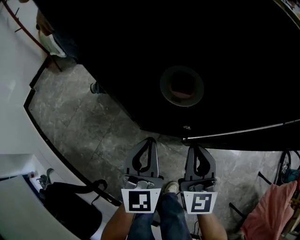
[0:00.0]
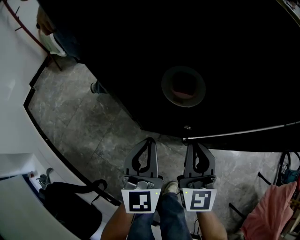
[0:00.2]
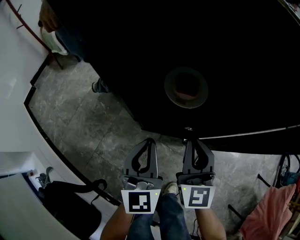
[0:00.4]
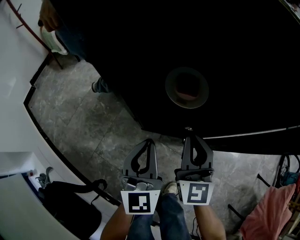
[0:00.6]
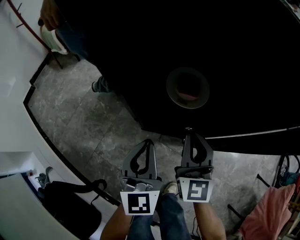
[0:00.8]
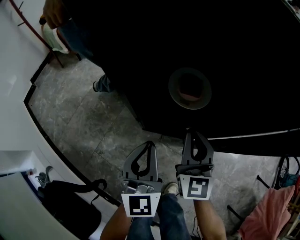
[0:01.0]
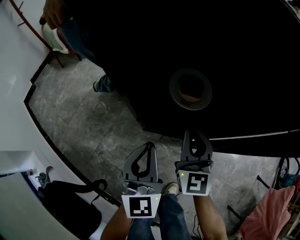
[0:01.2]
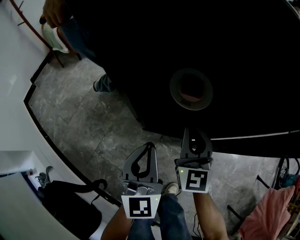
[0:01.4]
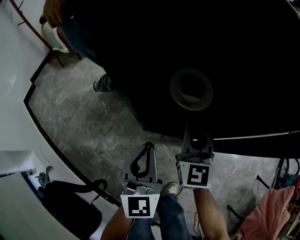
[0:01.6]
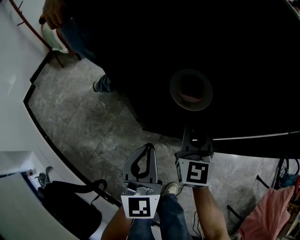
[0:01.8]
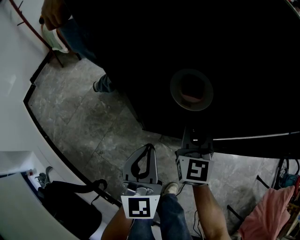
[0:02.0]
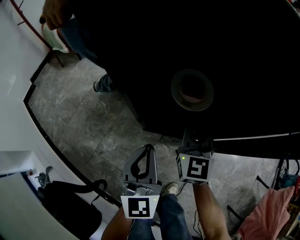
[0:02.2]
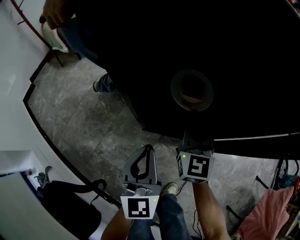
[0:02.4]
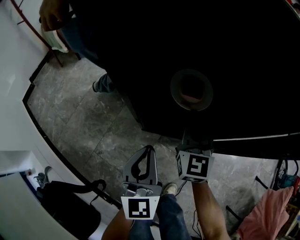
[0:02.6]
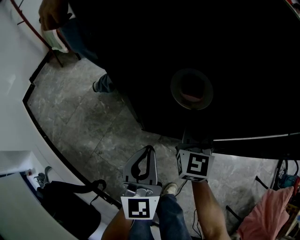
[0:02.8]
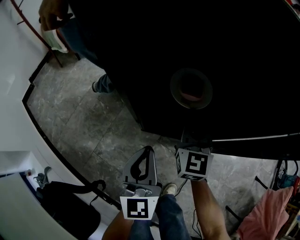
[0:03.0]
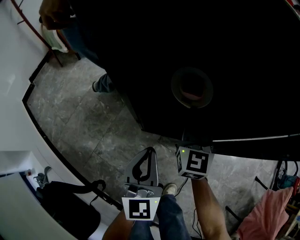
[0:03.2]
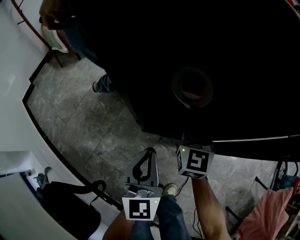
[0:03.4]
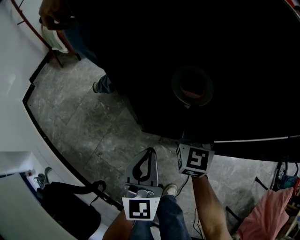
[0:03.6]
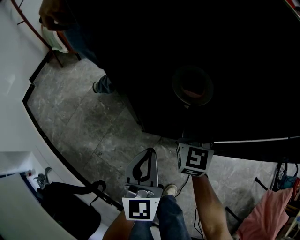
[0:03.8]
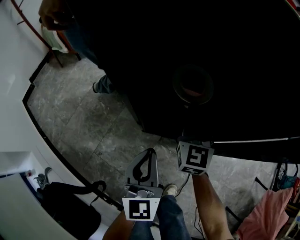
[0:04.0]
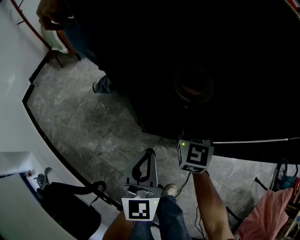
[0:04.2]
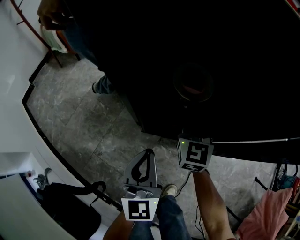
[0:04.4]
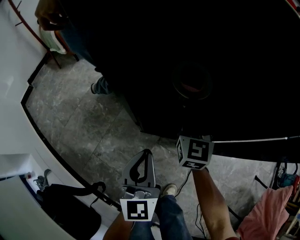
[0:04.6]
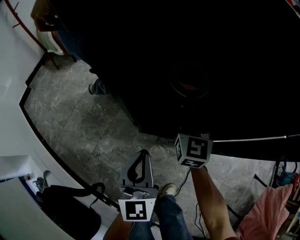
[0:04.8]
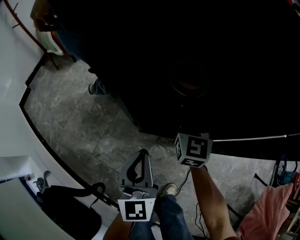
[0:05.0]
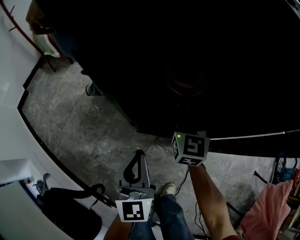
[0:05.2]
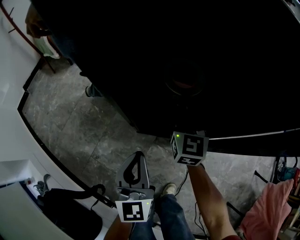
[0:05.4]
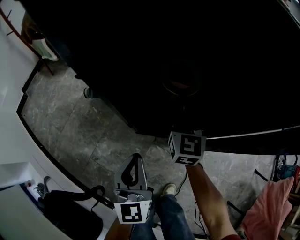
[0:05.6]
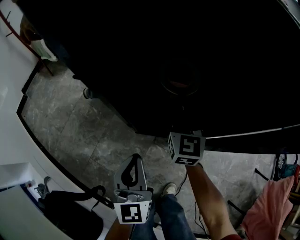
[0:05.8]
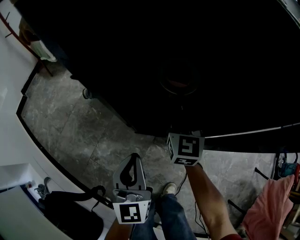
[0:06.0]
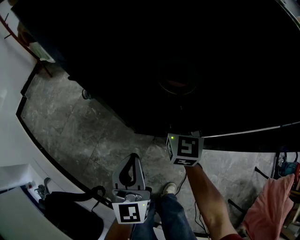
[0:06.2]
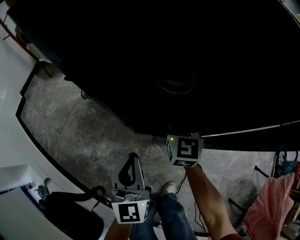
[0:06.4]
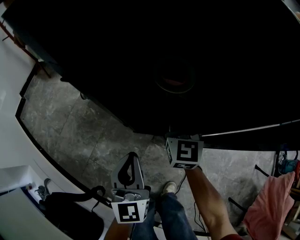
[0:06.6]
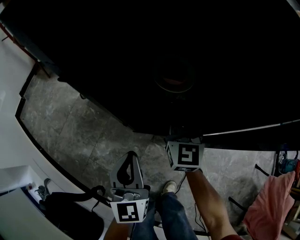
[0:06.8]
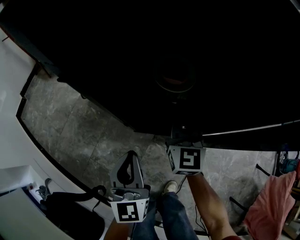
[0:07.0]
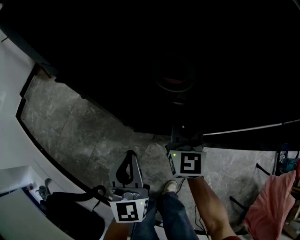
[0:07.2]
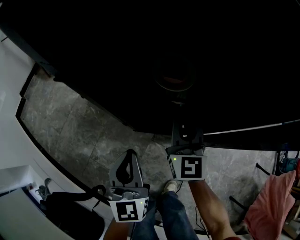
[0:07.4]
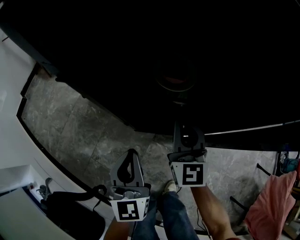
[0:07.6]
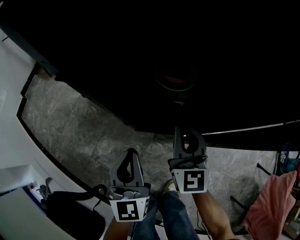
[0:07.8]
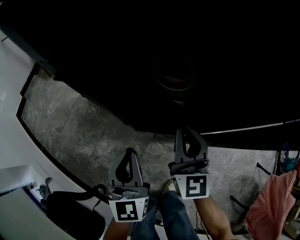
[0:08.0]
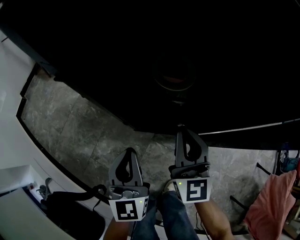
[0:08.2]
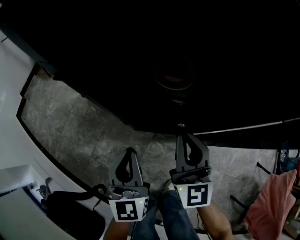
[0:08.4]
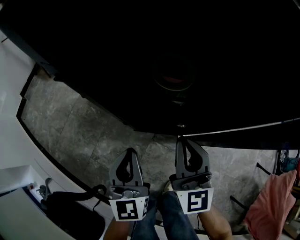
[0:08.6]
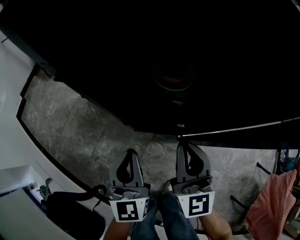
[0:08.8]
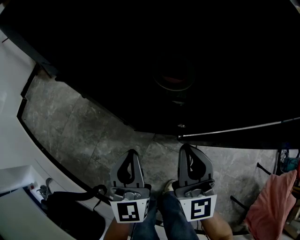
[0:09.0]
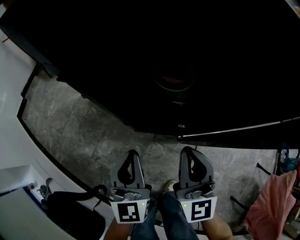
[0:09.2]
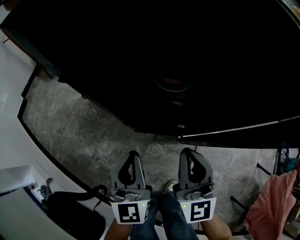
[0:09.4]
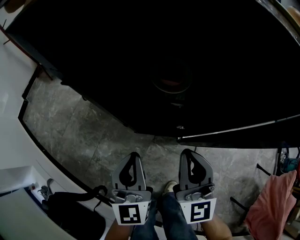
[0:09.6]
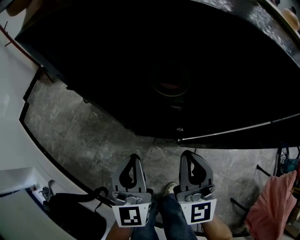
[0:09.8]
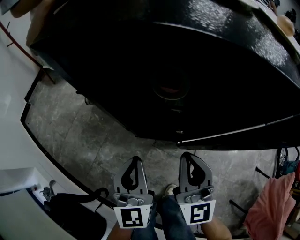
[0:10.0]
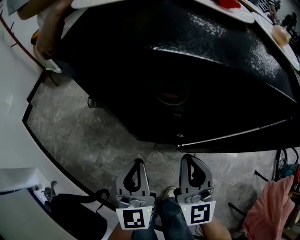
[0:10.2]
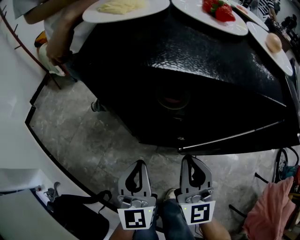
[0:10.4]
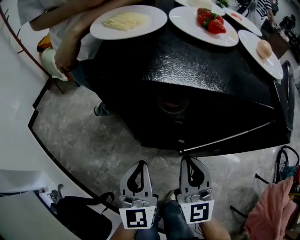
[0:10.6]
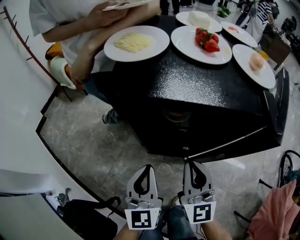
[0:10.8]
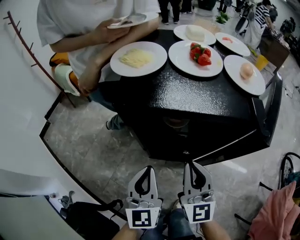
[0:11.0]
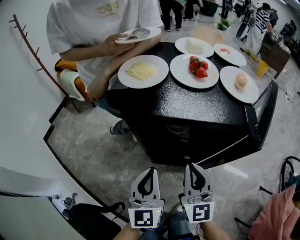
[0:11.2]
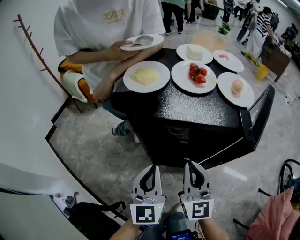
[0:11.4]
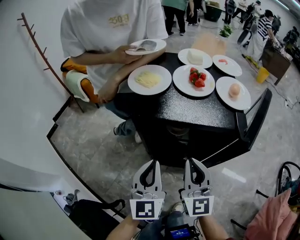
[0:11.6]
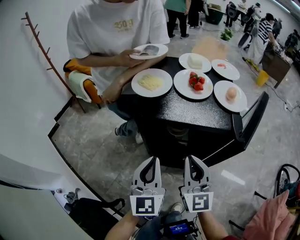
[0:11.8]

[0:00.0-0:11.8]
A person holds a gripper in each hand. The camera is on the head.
0:00.0 to 0:01.4: The right gripper goes approximately 5 cm forward.
0:01.4 to 0:03.0: The grippers move only a little.
0:03.0 to 0:06.0: The grippers make only small movements.
0:06.0 to 0:07.4: The right gripper is displaced backward by about 5 cm.
0:07.4 to 0:08.8: The right gripper shifts about 10 cm backward and upward.
0:08.8 to 0:10.4: Both grippers move upward, roughly 5 cm.
0:10.4 to 0:11.8: The two grippers go about 15 cm upward.

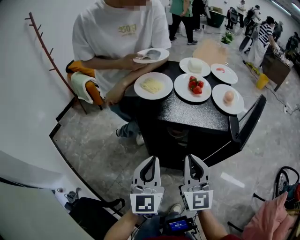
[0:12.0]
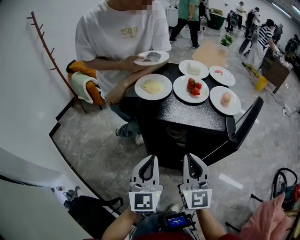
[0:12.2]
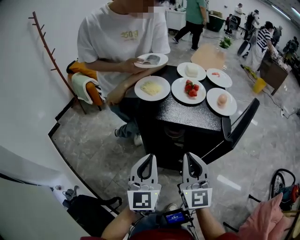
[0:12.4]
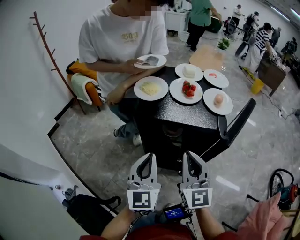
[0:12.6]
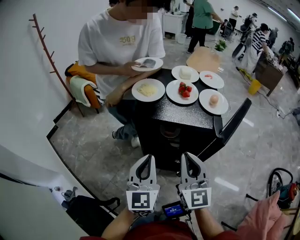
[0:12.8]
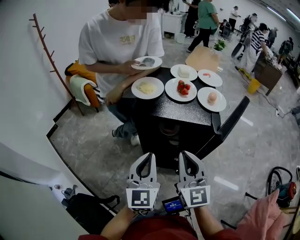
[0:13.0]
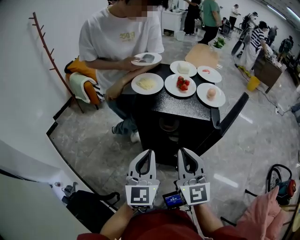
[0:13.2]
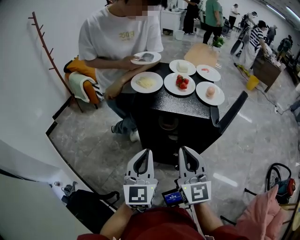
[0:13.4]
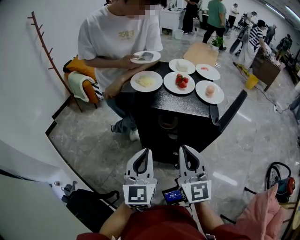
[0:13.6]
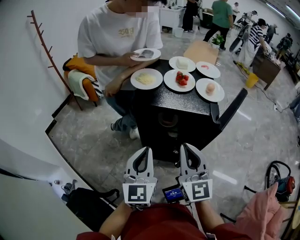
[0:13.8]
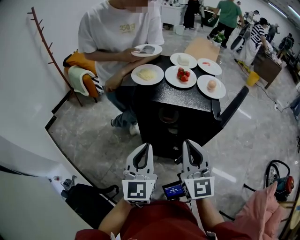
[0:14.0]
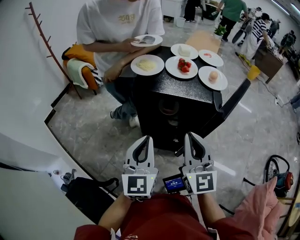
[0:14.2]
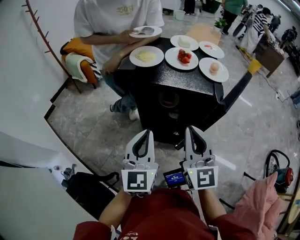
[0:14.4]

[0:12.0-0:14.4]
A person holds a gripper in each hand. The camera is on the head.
0:12.0 to 0:13.2: The two grippers go some 10 cm upward and backward.
0:13.2 to 0:14.4: The grippers stay close to where they were, moving slightly.

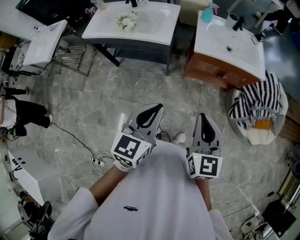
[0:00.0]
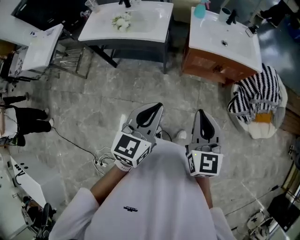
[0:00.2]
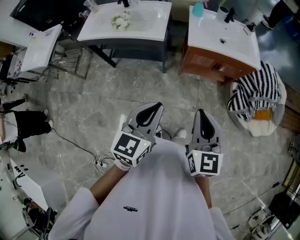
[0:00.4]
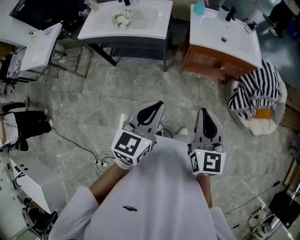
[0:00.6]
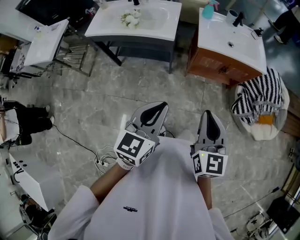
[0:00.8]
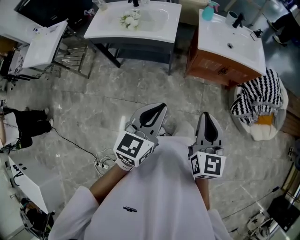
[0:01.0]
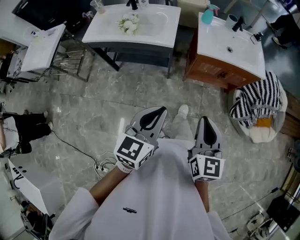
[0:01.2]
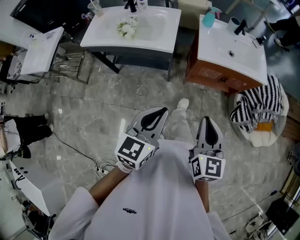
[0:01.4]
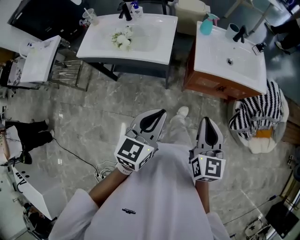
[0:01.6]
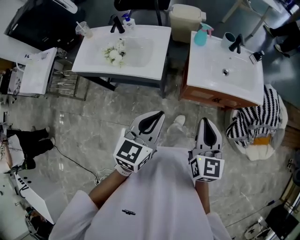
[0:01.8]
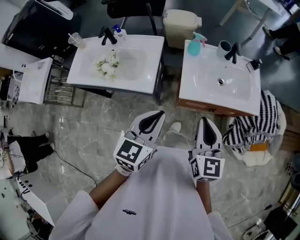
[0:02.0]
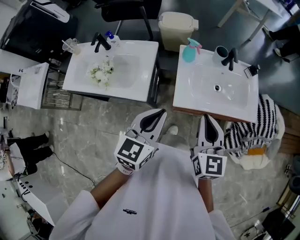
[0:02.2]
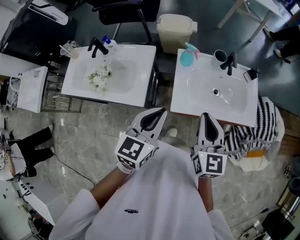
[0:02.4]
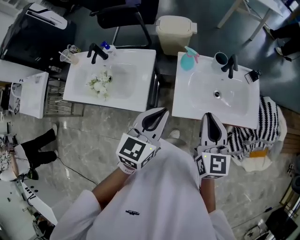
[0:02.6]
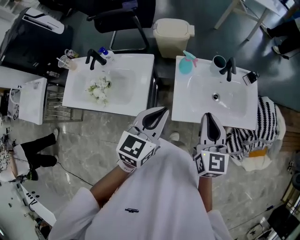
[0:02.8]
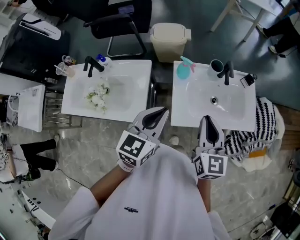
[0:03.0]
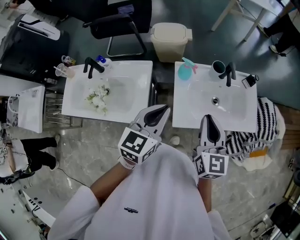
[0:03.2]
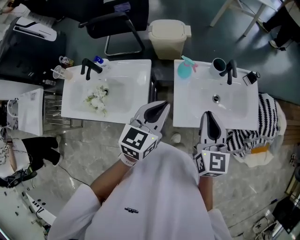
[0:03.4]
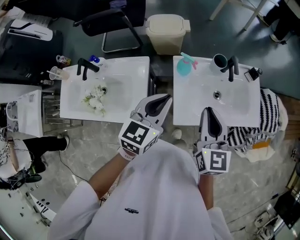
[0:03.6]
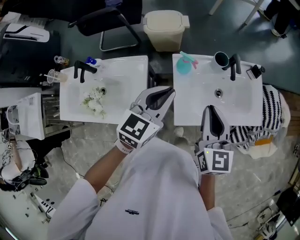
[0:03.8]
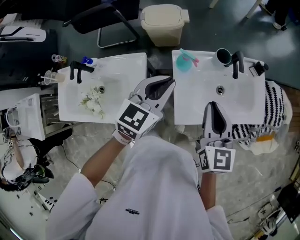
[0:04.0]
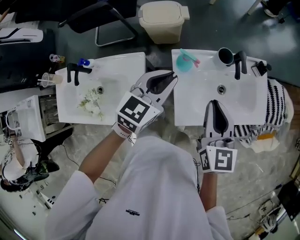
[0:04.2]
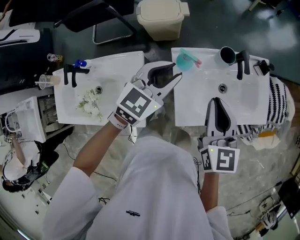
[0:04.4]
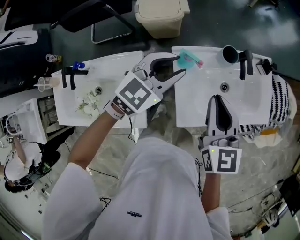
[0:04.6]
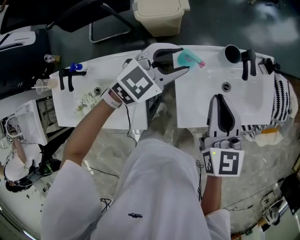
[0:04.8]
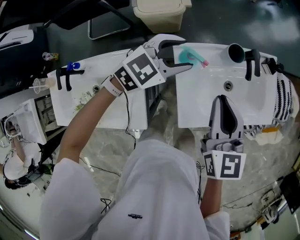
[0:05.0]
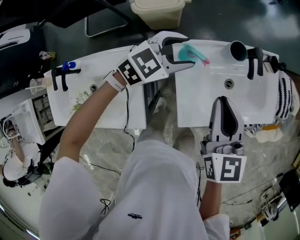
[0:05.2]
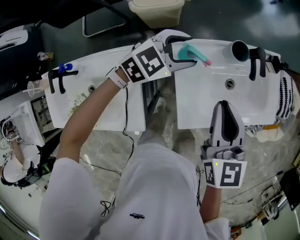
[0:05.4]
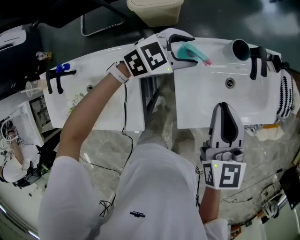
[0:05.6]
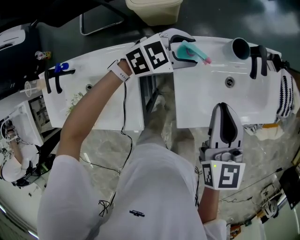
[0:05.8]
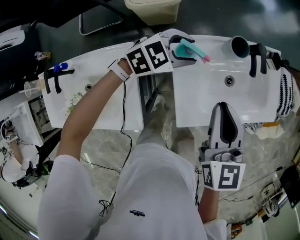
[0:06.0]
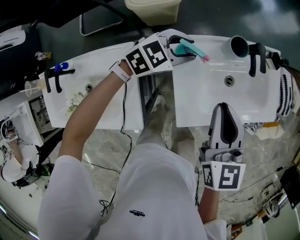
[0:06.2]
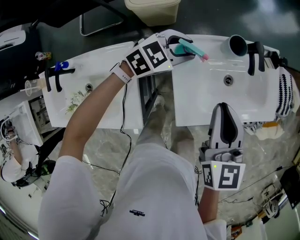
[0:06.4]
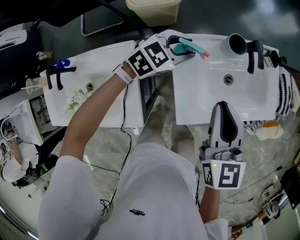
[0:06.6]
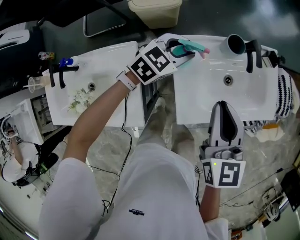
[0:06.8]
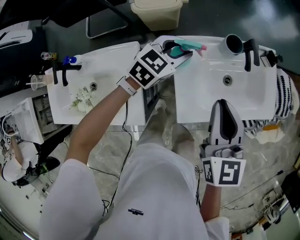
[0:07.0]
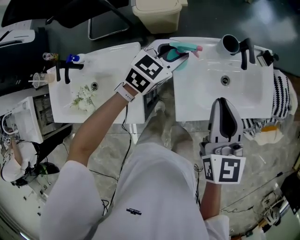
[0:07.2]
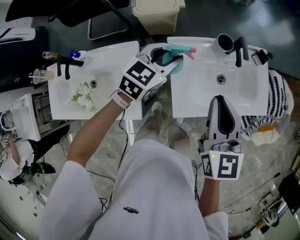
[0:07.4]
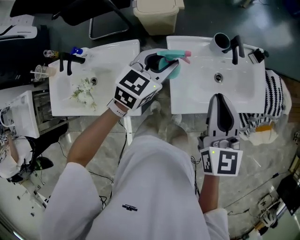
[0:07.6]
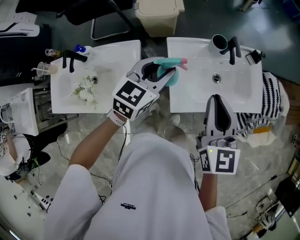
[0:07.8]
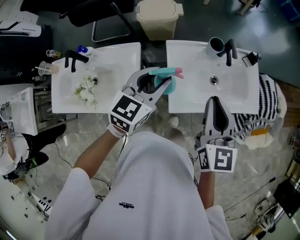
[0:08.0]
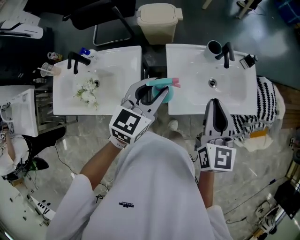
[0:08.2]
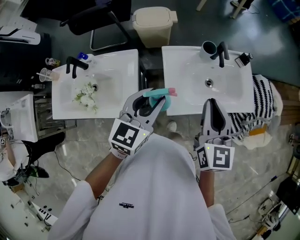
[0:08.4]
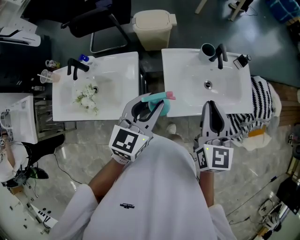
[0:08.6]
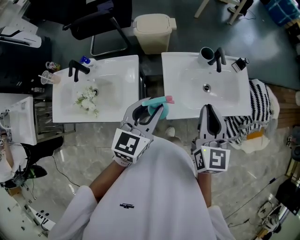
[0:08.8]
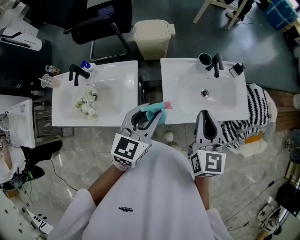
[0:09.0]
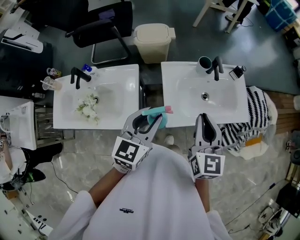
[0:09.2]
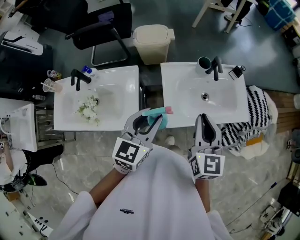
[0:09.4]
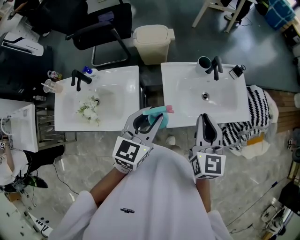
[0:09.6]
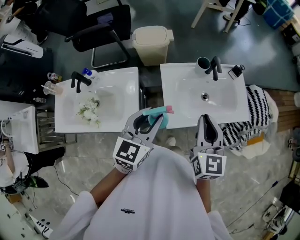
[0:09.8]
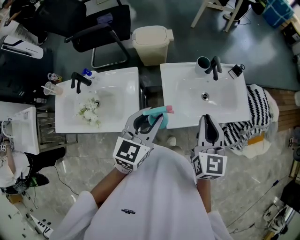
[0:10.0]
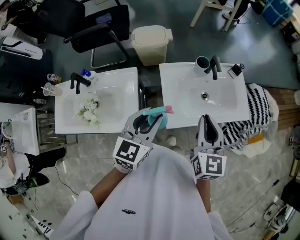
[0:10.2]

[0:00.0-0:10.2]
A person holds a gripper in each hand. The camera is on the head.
0:00.0 to 0:01.4: The left gripper changes place by roughly 5 cm; the right gripper shifts by about 5 cm.
0:01.4 to 0:03.0: The pair of grippers is taken forward, roughly 40 cm.
0:03.0 to 0:04.4: The left gripper goes about 20 cm forward, changes its angle by some 30 degrees, and opens, while the right gripper moves forward, some 15 cm.
0:04.4 to 0:05.8: The right gripper shifts some 5 cm downward. The left gripper moves downward and forward, approximately 15 cm, rotates about 30 degrees, and opens.
0:05.8 to 0:07.2: The two grippers go roughly 5 cm upward. The left gripper rotates about 30 degrees, and closes up.
0:07.2 to 0:08.8: The left gripper is displaced backward and upward by roughly 25 cm, and turns by approximately 30 degrees, while the right gripper heads backward and upward, covering approximately 10 cm.
0:08.8 to 0:10.2: Both grippers stay put.
